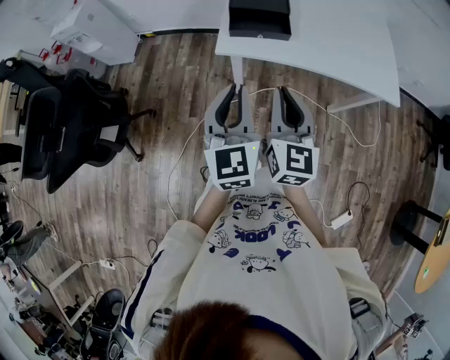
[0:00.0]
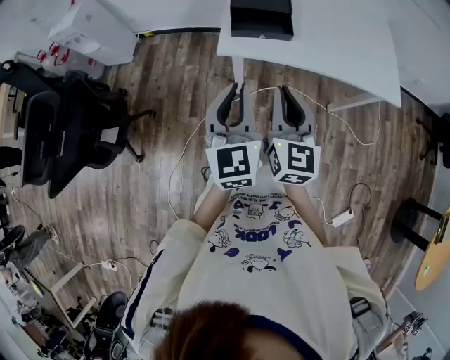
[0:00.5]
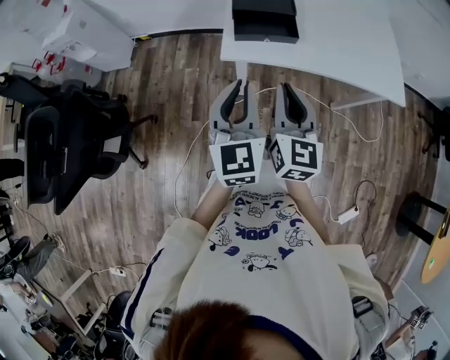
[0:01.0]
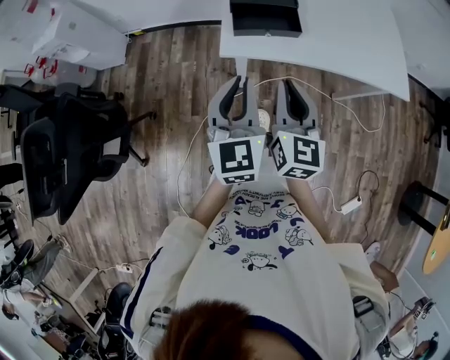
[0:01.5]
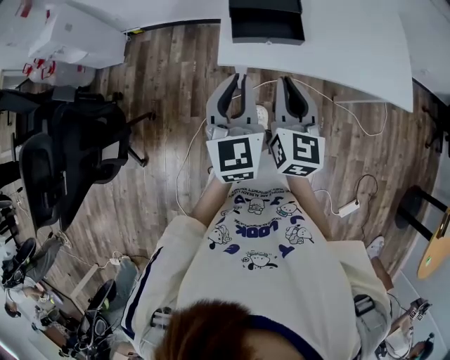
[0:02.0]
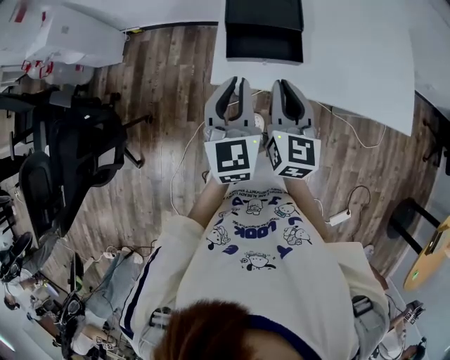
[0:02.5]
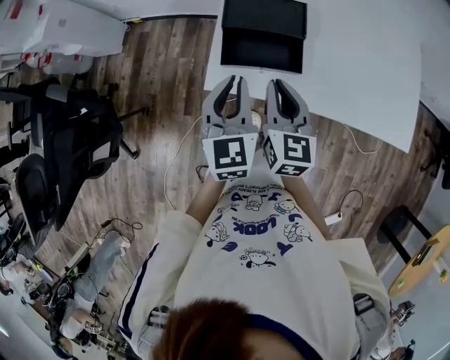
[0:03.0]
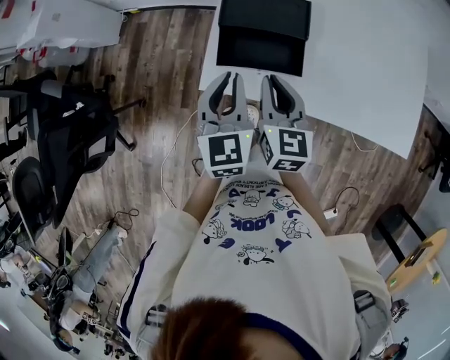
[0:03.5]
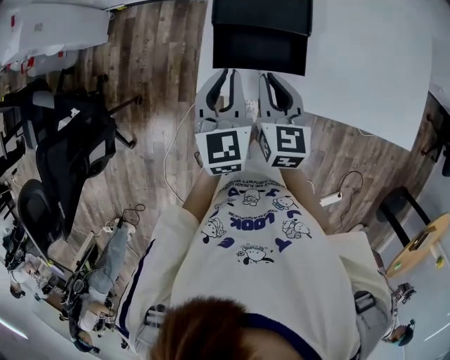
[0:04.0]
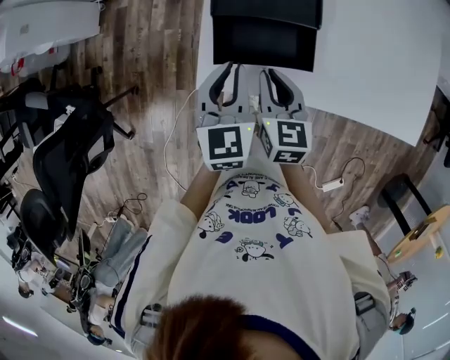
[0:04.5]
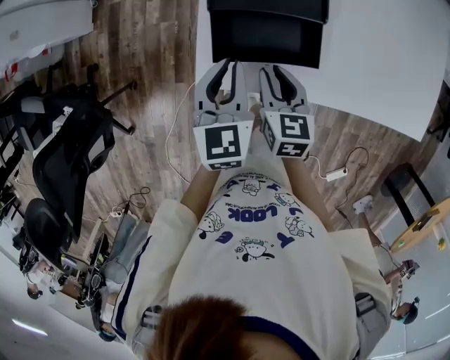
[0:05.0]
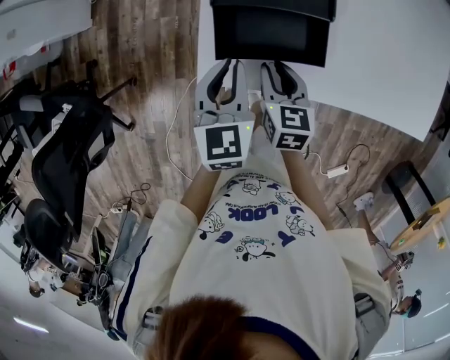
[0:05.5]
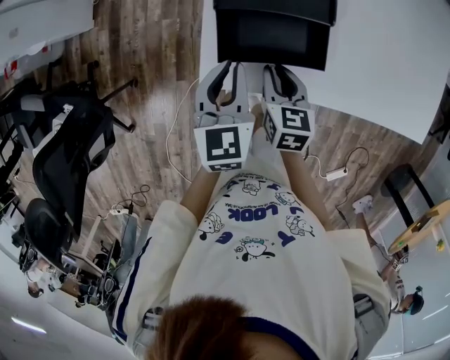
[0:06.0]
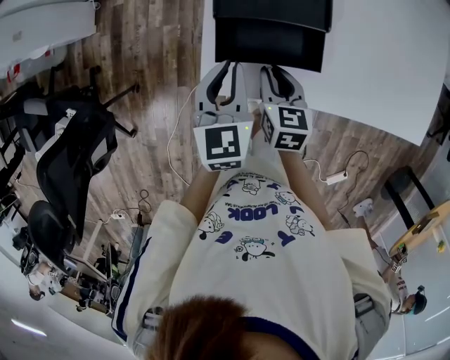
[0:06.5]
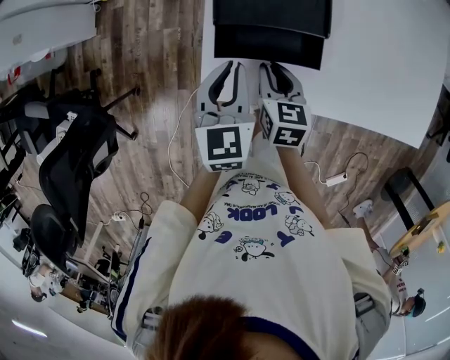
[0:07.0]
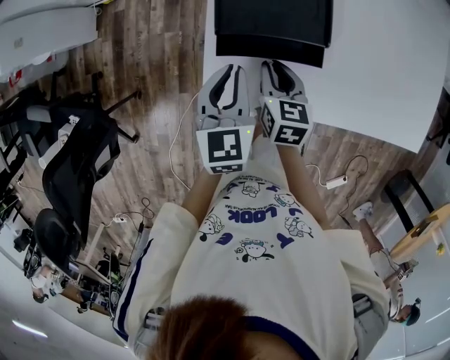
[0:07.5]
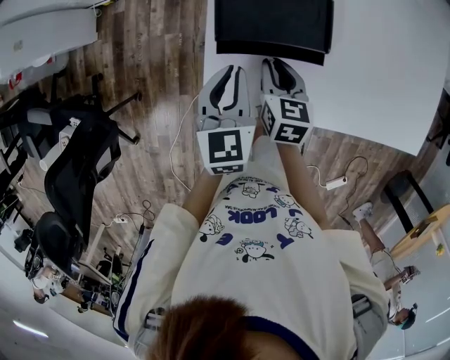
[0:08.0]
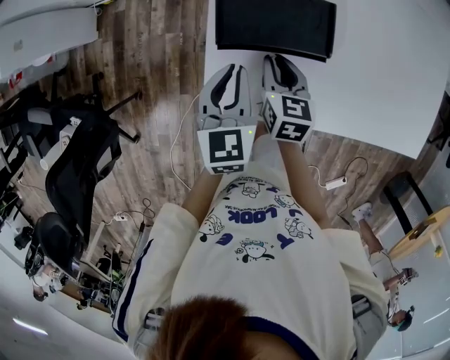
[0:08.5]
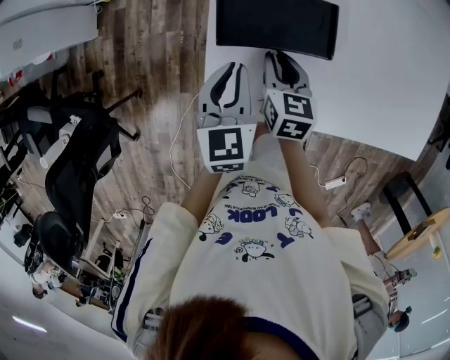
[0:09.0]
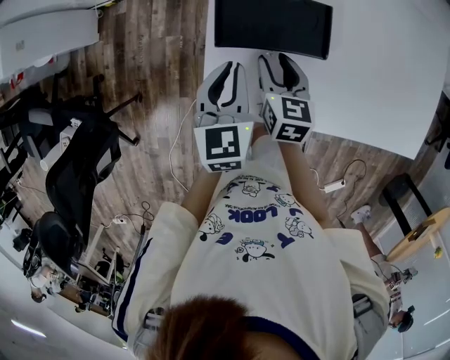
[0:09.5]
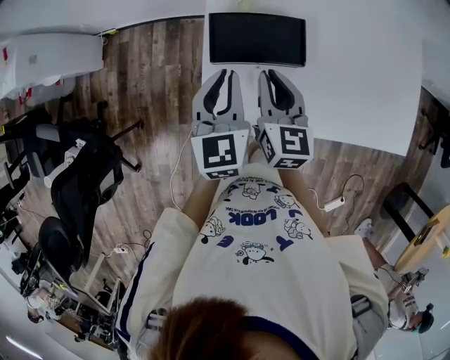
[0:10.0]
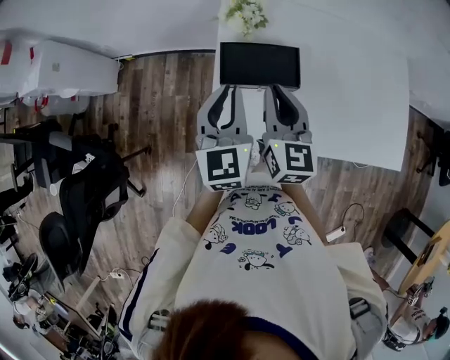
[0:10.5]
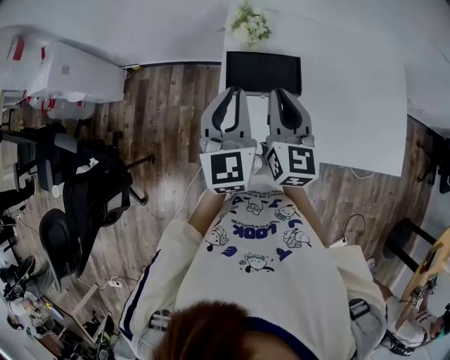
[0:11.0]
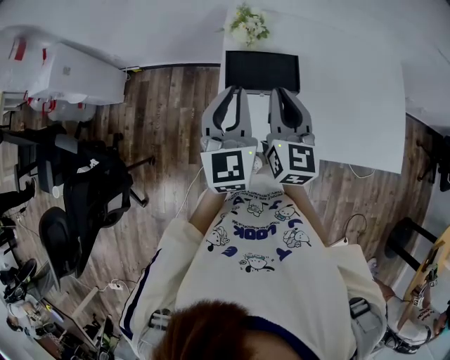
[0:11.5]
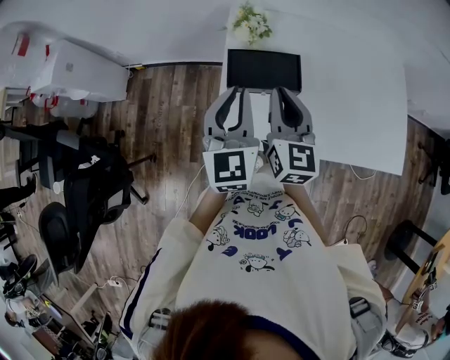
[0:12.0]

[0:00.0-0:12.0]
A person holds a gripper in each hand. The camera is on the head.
0:00.0 to 0:02.0: The left gripper travels forward by about 15 cm. Meanwhile the right gripper is displaced forward and downward by some 15 cm.
0:02.0 to 0:04.0: The two grippers go about 20 cm forward and downward. The right gripper swivels about 20 degrees.
0:04.0 to 0:06.0: The left gripper moves downward, approximately 5 cm; the right gripper shifts about 10 cm downward.
0:06.0 to 0:08.0: Both grippers travel together forward, roughly 5 cm.
0:08.0 to 0:10.0: The left gripper travels upward by approximately 10 cm. Meanwhile the right gripper heads upward, covering roughly 15 cm, rotates approximately 20 degrees, and opens, then closes once more.
0:10.0 to 0:12.0: The grippers both shift upward by about 10 cm.

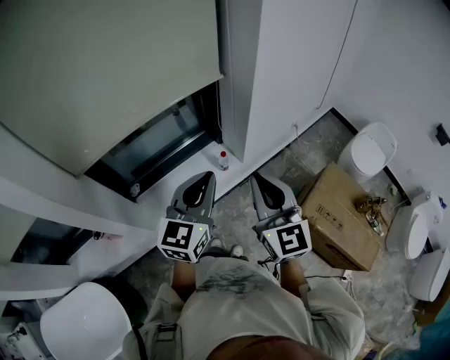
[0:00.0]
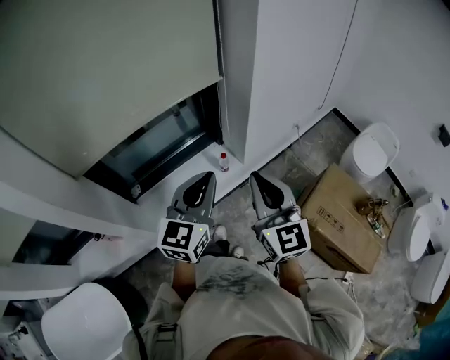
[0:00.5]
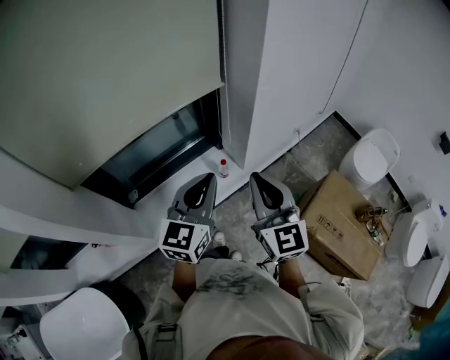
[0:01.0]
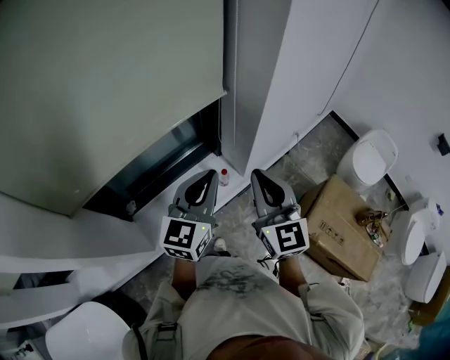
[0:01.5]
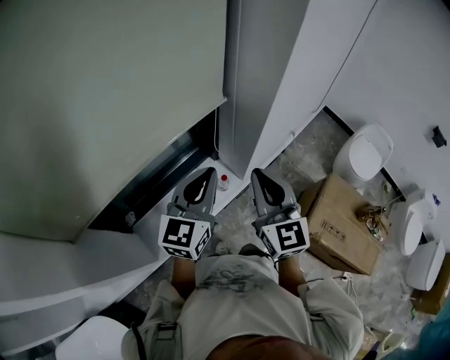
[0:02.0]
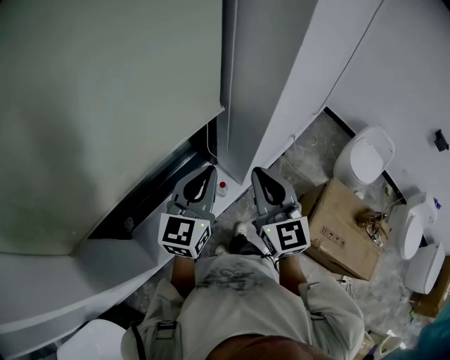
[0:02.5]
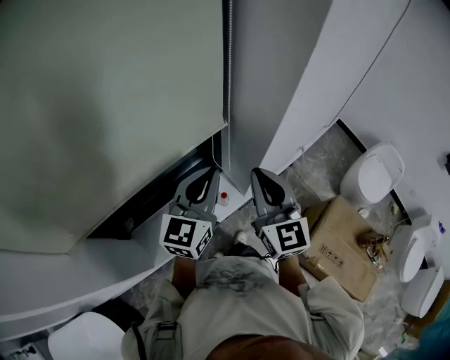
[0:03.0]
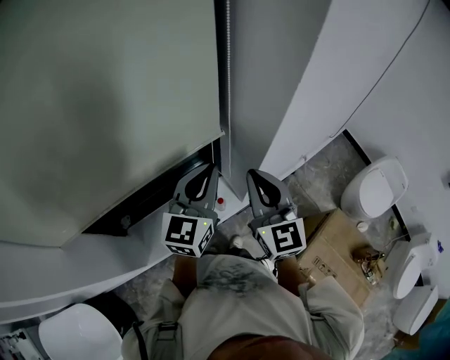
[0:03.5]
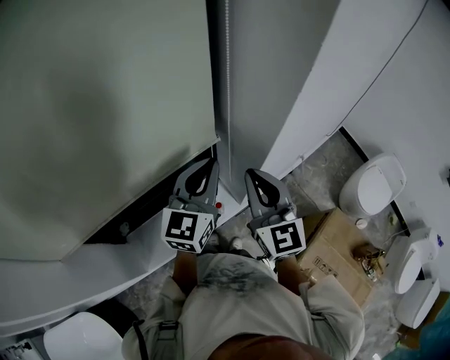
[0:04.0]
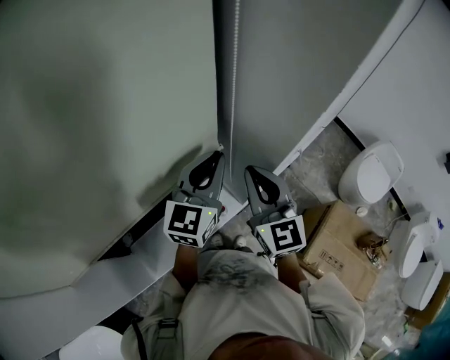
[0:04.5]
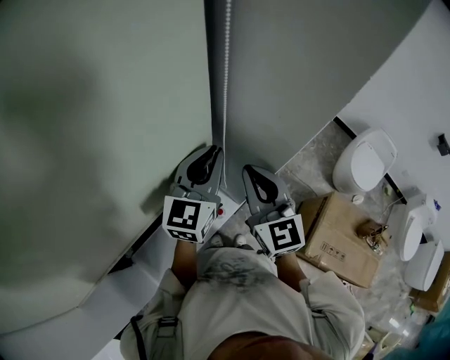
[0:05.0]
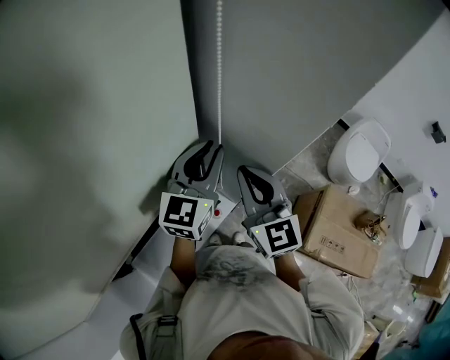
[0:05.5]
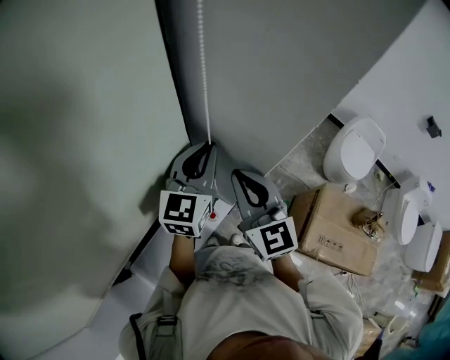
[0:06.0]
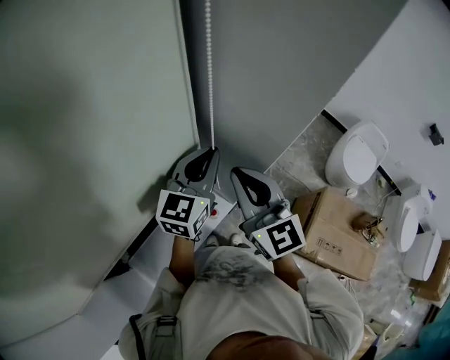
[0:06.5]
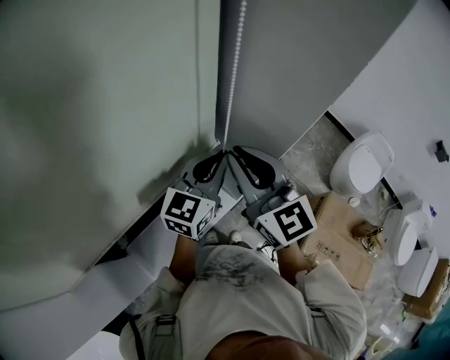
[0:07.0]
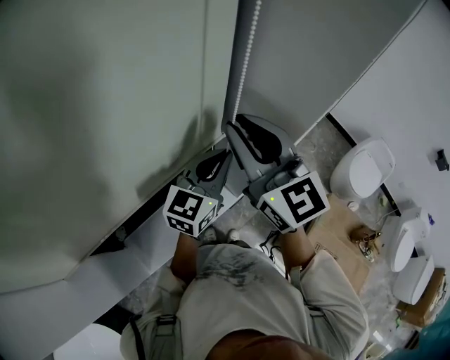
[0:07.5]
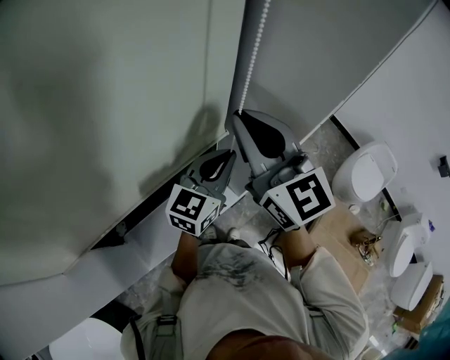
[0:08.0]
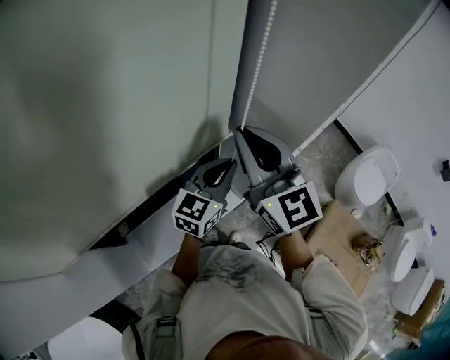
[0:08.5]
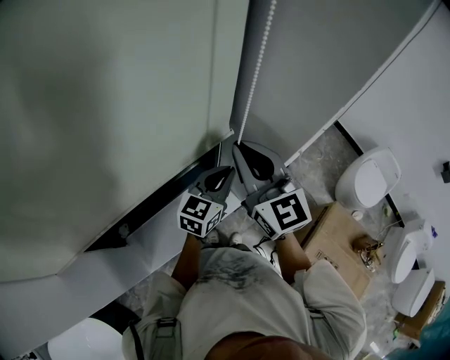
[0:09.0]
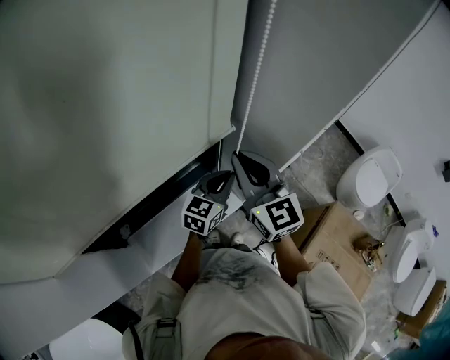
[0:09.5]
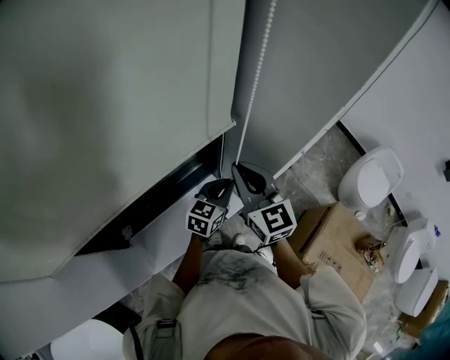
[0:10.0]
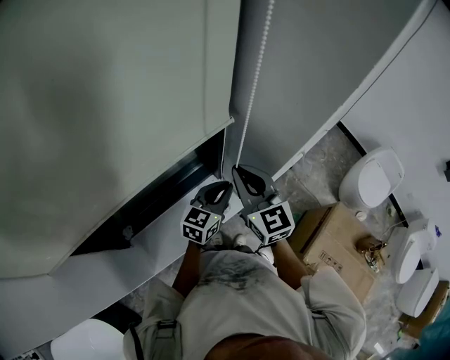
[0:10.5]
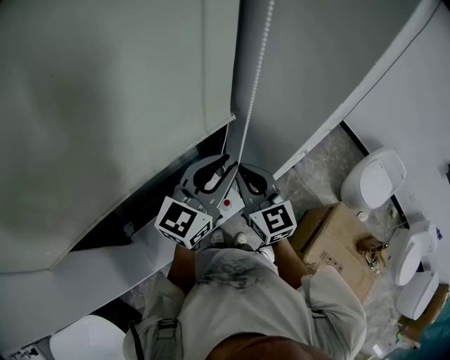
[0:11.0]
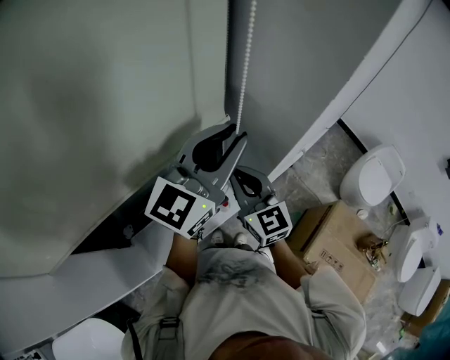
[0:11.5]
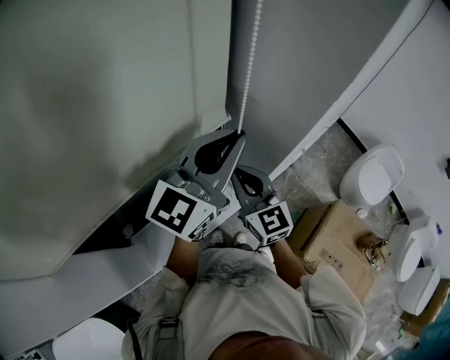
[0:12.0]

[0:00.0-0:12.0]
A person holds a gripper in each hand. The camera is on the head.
0:00.0 to 0:02.0: Both grippers move forward, about 20 cm.
0:02.0 to 0:04.0: The grippers both shift forward by some 15 cm.
0:04.0 to 0:06.0: The right gripper travels forward by approximately 5 cm, while the left gripper heads forward, covering roughly 10 cm.
0:06.0 to 0:08.0: The left gripper goes roughly 10 cm backward. The right gripper shifts roughly 15 cm upward and to the left, and swivels roughly 20 degrees.
0:08.0 to 0:10.0: Both grippers move downward, some 15 cm.
0:10.0 to 0:12.0: The left gripper moves upward, roughly 30 cm, and angles its fingers upward, by roughly 30 degrees.

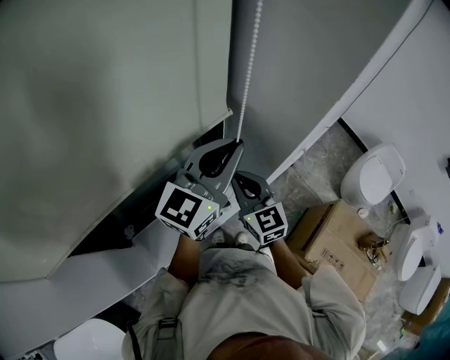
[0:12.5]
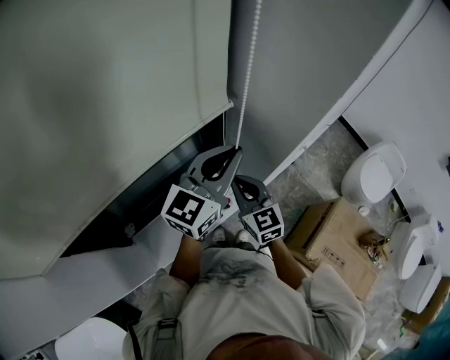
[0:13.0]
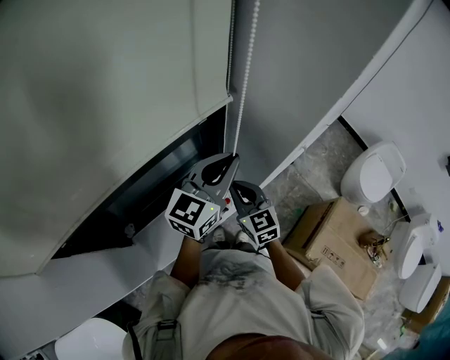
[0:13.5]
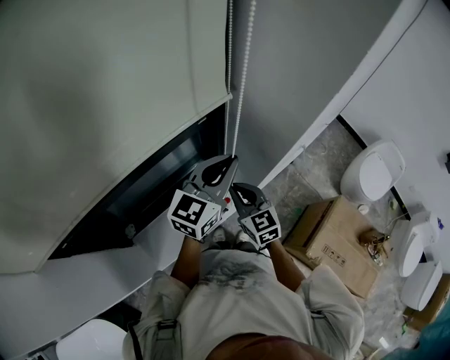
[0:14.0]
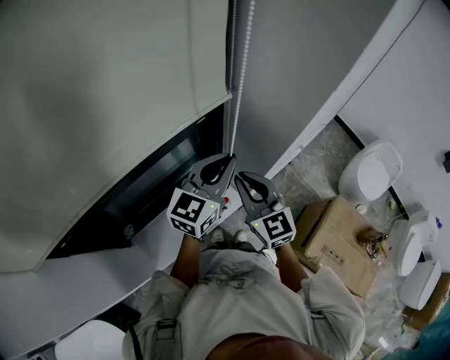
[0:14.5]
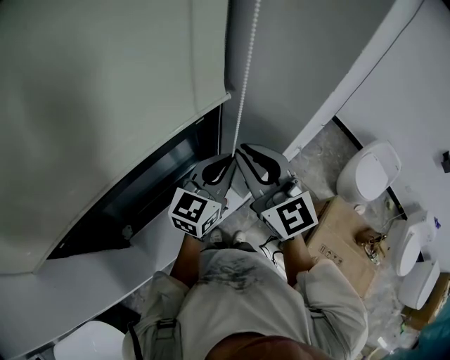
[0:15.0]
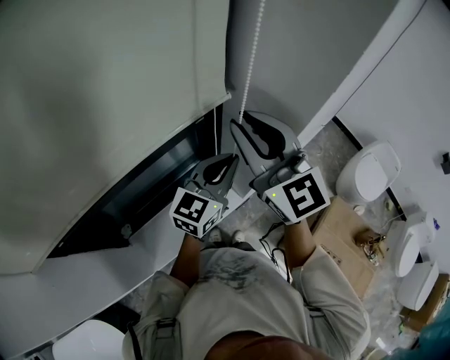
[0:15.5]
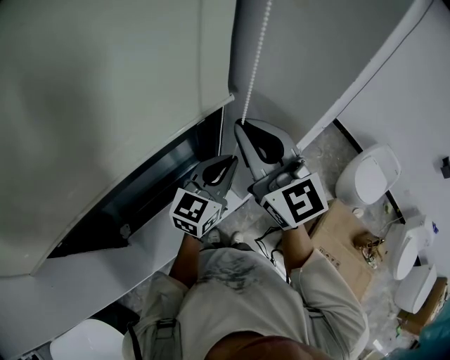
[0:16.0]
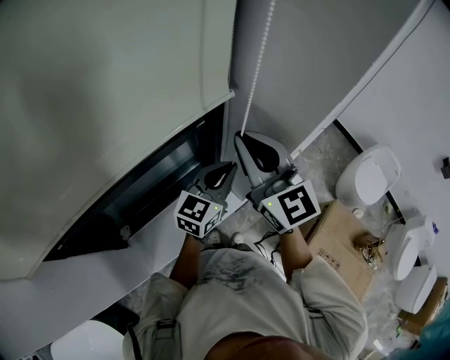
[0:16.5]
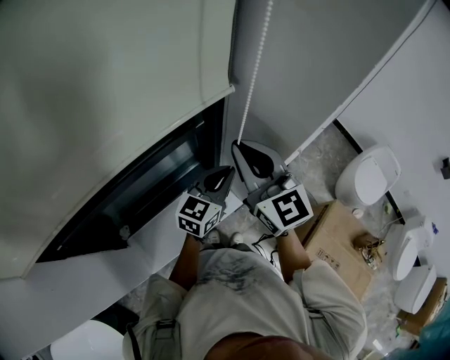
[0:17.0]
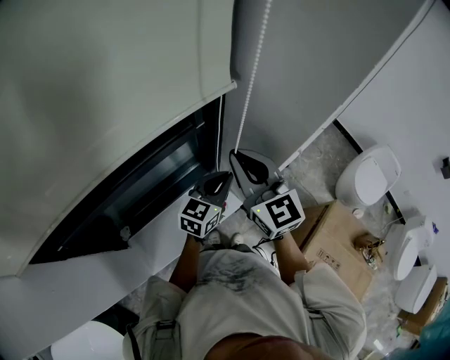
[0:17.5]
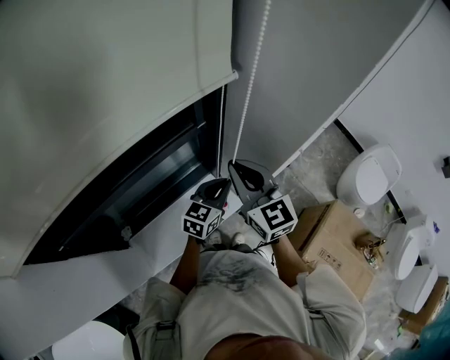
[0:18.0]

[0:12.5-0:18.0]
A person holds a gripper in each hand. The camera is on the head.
0:12.5 to 0:14.5: The left gripper moves downward, about 10 cm. The right gripper moves about 10 cm downward and comes back.
0:14.5 to 0:16.0: The right gripper is displaced upward by approximately 20 cm.
0:16.0 to 0:18.0: Both grippers travel together downward, approximately 15 cm.
